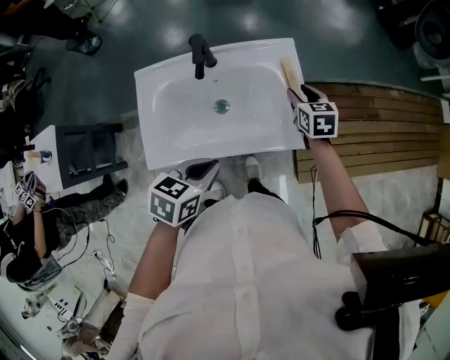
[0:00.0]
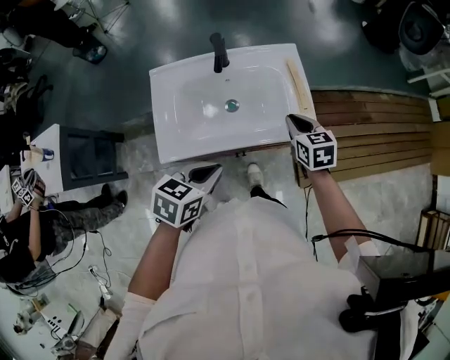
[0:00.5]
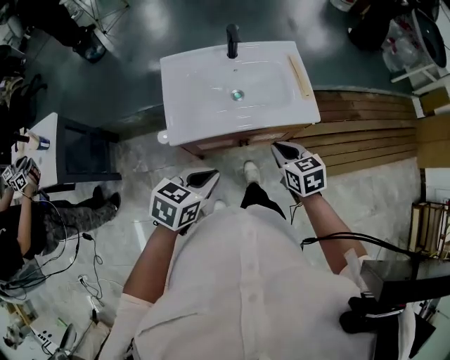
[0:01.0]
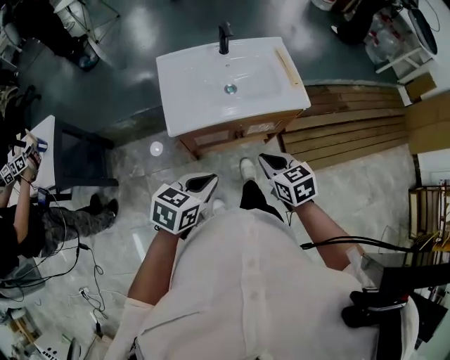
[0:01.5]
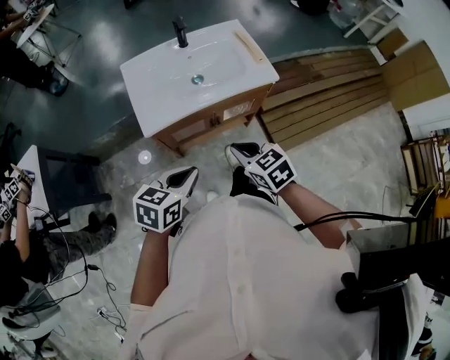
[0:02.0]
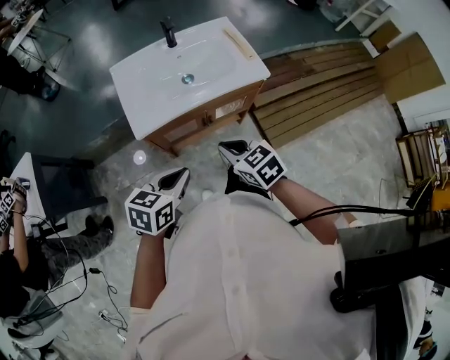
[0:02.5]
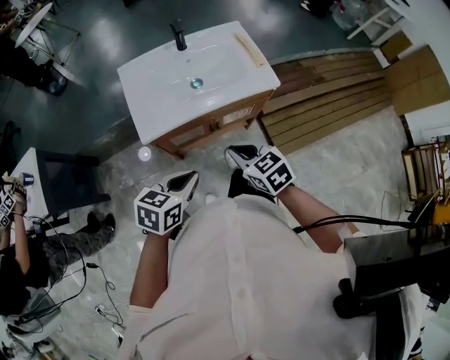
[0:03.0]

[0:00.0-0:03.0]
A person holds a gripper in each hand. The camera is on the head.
0:00.0 to 0:01.5: The right gripper goes approximately 40 cm backward, and closes up. Meanwhile the left gripper travels backward by some 25 cm.
0:01.5 to 0:03.0: The grippers make only small movements.

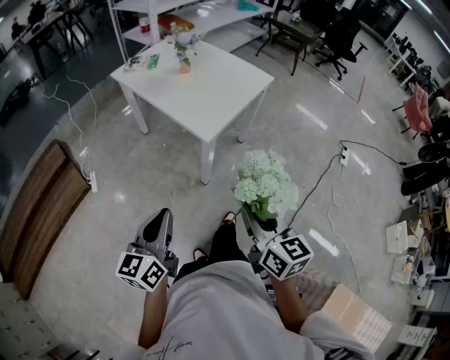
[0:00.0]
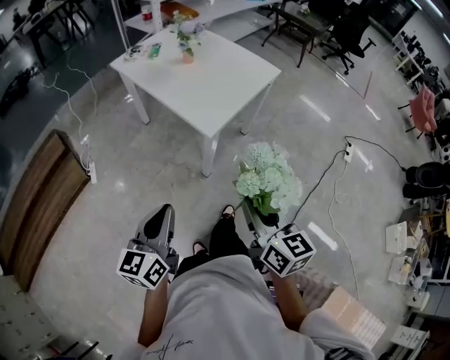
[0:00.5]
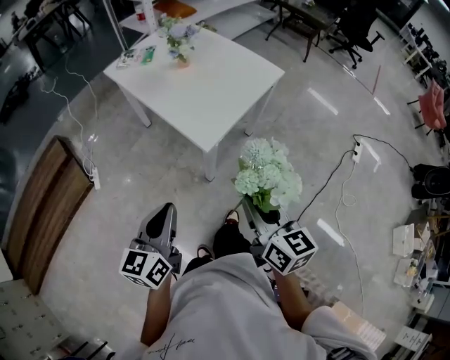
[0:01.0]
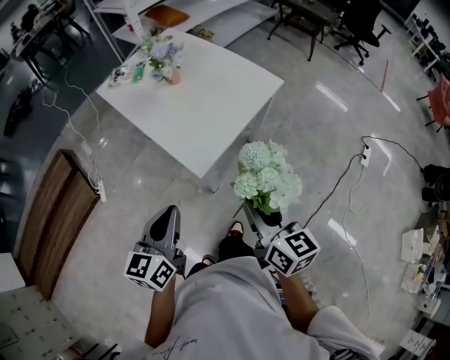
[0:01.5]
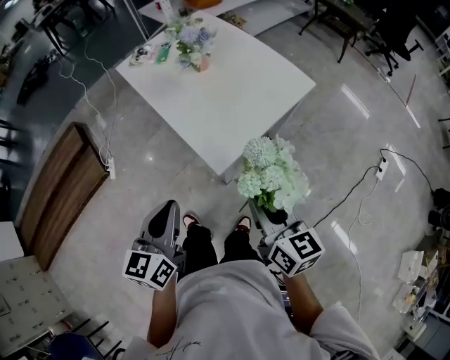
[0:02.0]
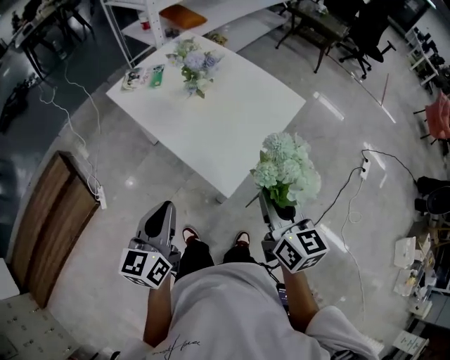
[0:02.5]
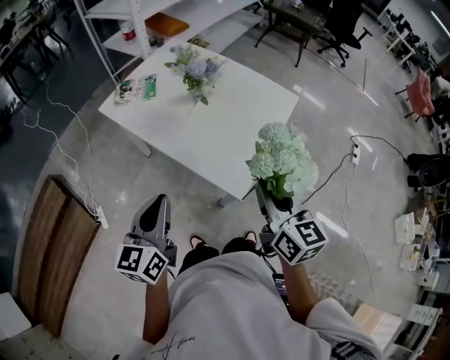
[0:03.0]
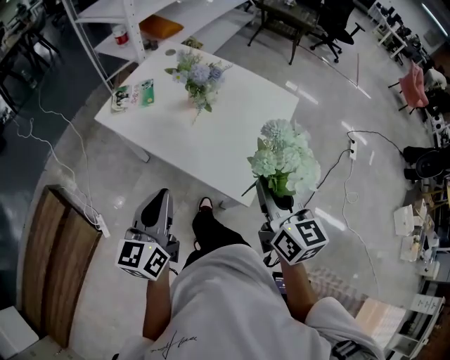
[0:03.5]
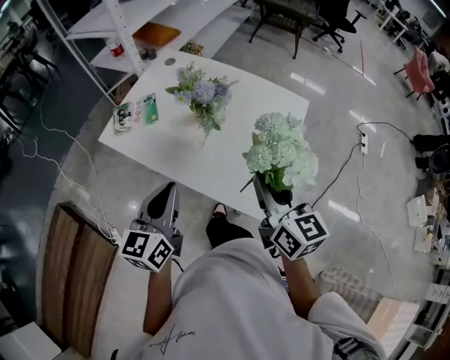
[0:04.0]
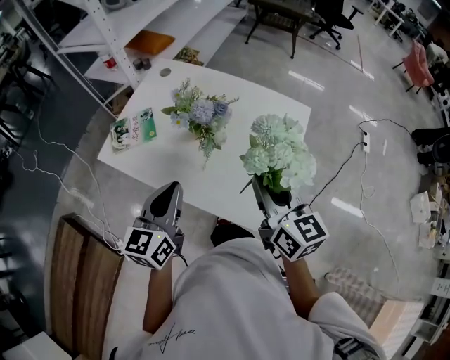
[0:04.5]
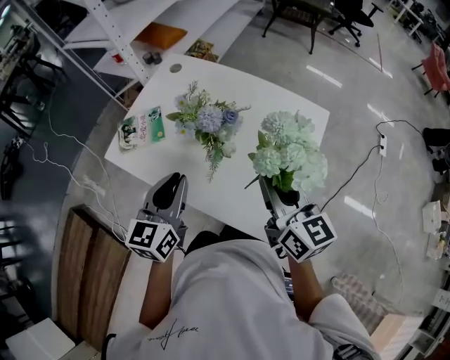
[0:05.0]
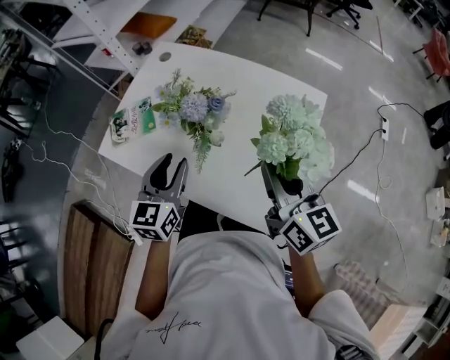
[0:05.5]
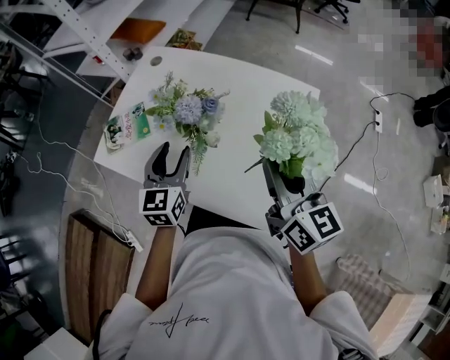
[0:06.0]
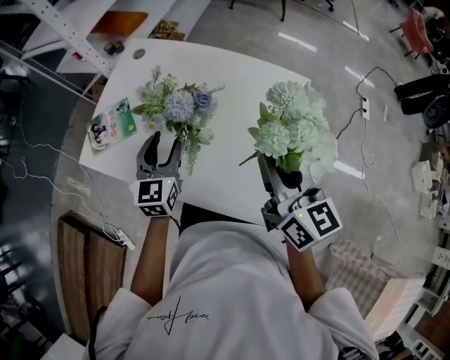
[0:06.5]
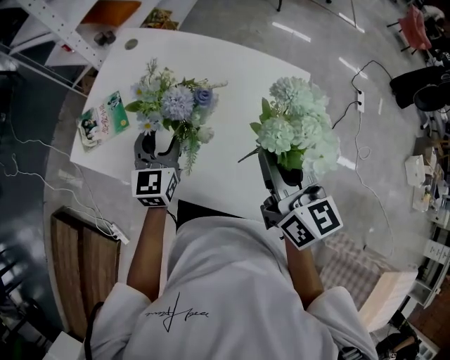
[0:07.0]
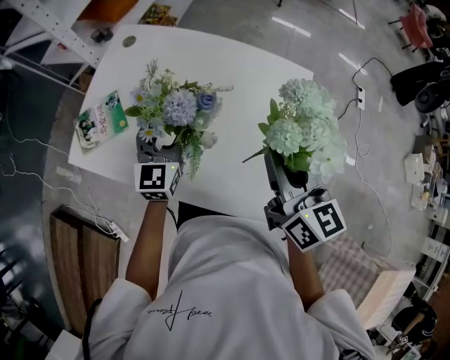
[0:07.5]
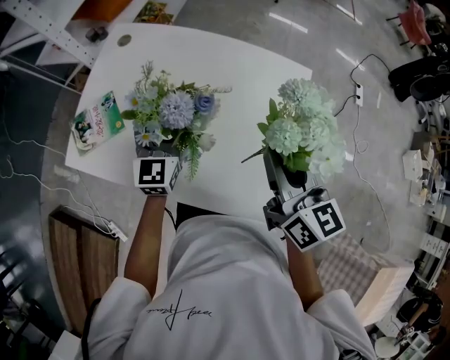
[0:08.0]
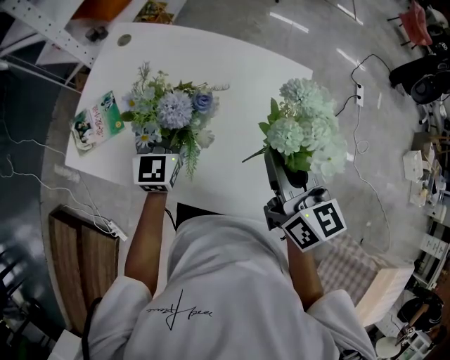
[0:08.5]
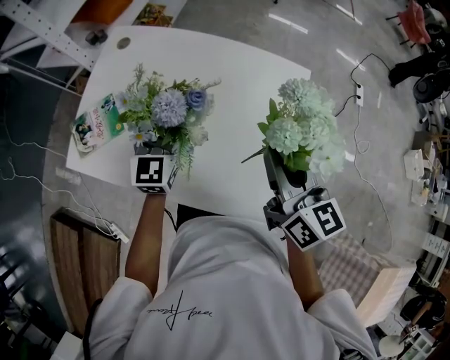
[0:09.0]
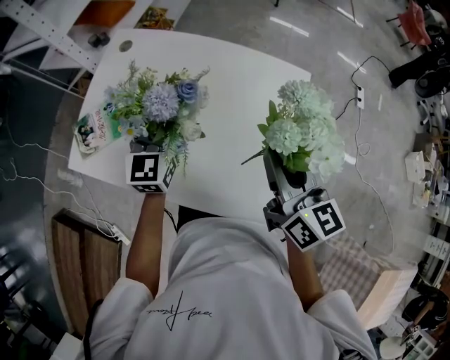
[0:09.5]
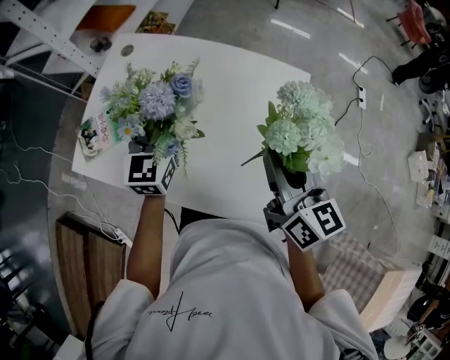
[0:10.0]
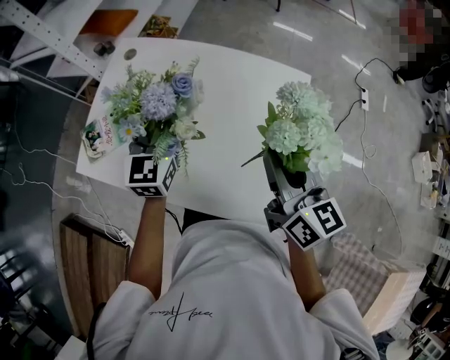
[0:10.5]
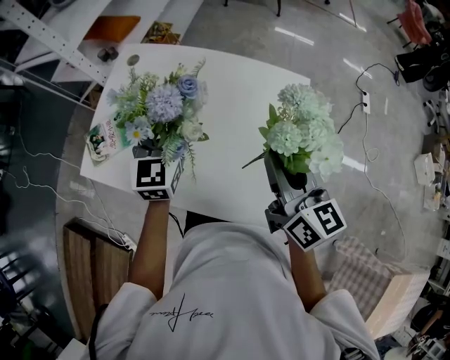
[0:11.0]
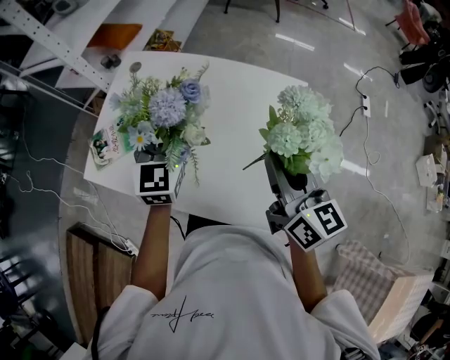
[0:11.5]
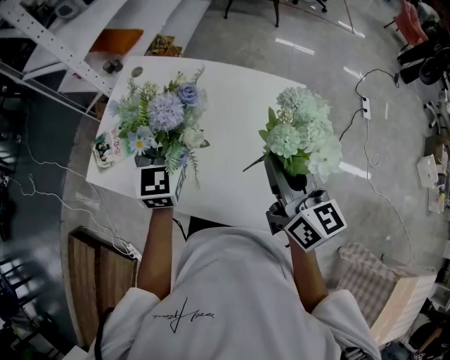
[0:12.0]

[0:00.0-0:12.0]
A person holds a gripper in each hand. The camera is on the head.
0:00.0 to 0:02.0: The two grippers go roughly 25 cm forward.
0:02.0 to 0:04.0: The right gripper changes place by some 25 cm, and rotates roughly 30 degrees. The left gripper ends up about 30 cm from where it was, and turns by about 20 degrees.
0:04.0 to 0:06.0: The left gripper heads forward, covering roughly 20 cm, and opens its fingers. The right gripper heads forward, covering roughly 10 cm.
0:06.0 to 0:08.0: The left gripper heads forward, covering approximately 5 cm.
0:08.0 to 0:10.0: The left gripper shifts about 5 cm upward, and closes its fingers.
0:10.0 to 0:12.0: The grippers make only small movements.

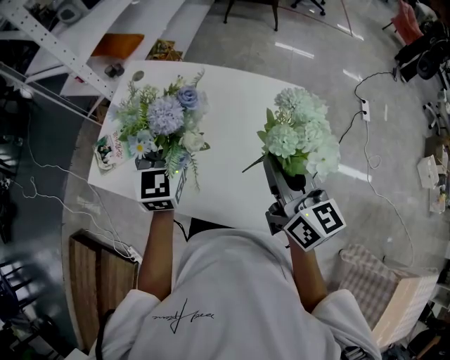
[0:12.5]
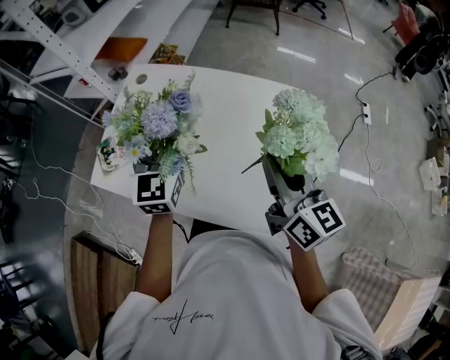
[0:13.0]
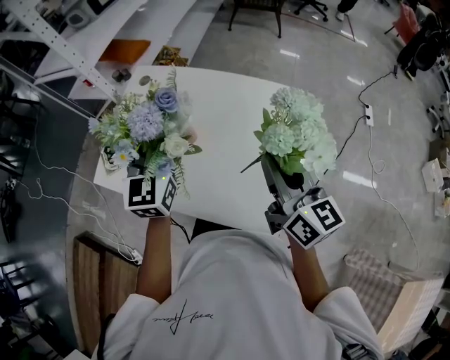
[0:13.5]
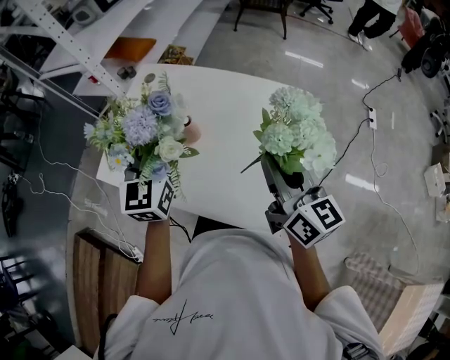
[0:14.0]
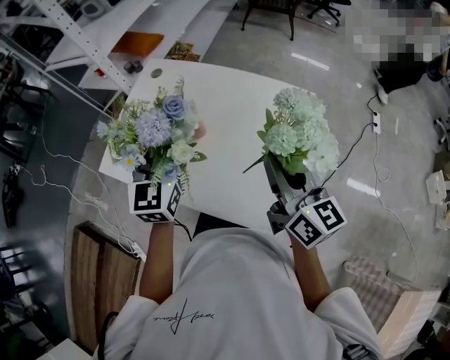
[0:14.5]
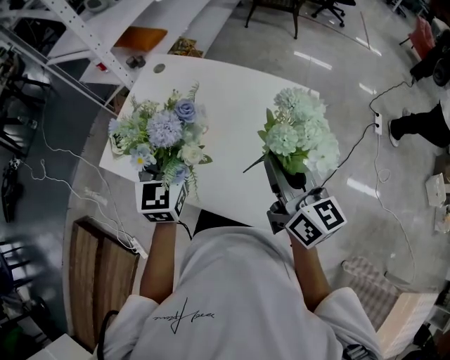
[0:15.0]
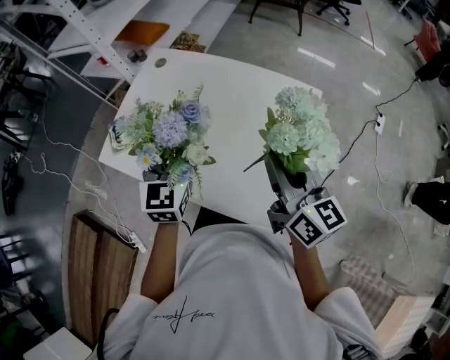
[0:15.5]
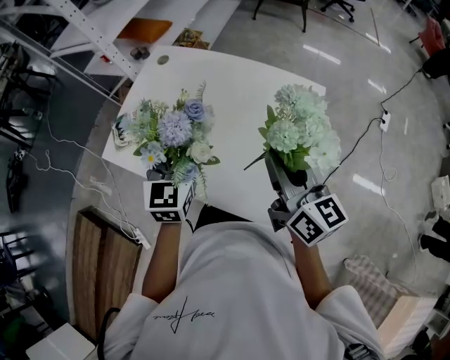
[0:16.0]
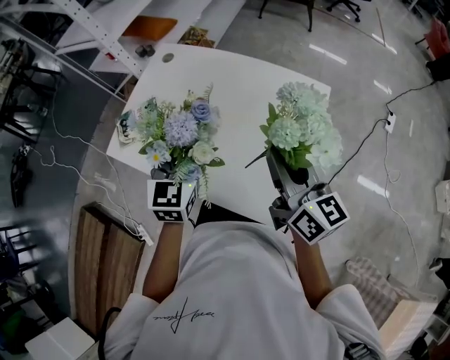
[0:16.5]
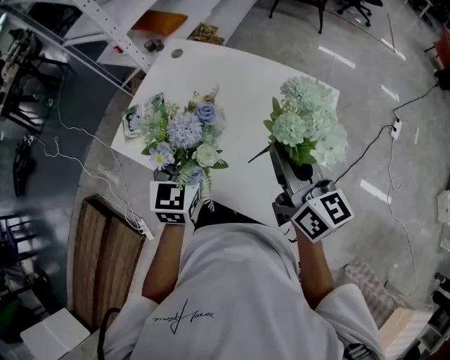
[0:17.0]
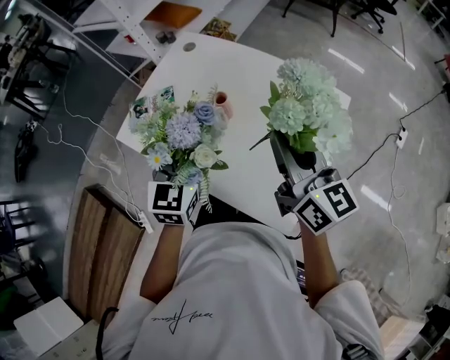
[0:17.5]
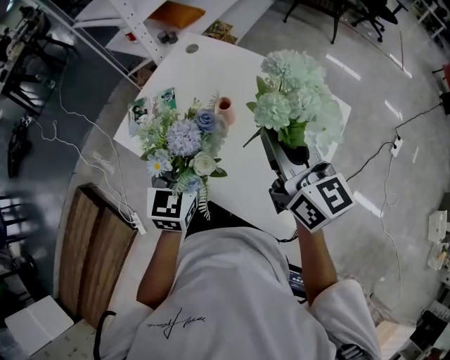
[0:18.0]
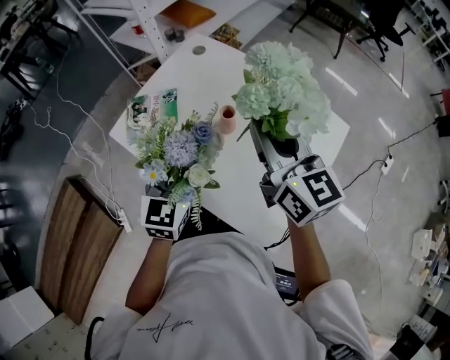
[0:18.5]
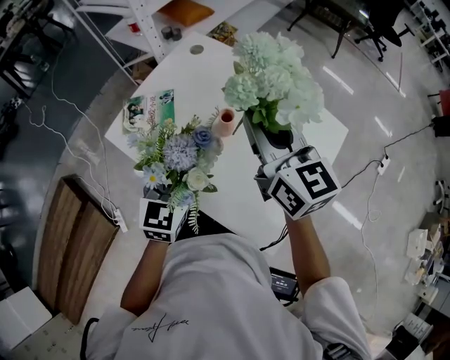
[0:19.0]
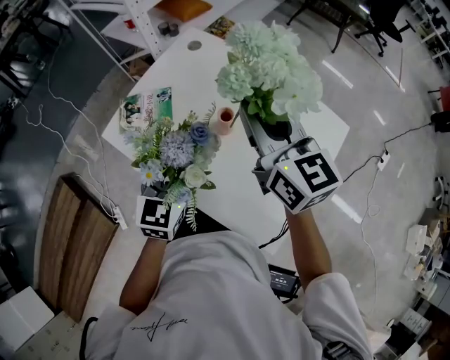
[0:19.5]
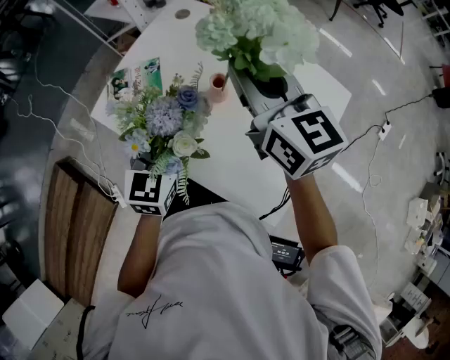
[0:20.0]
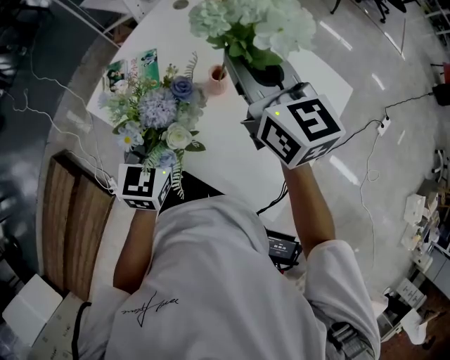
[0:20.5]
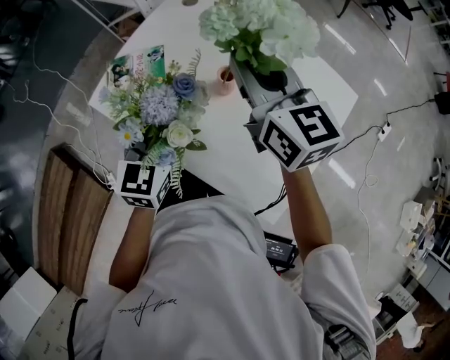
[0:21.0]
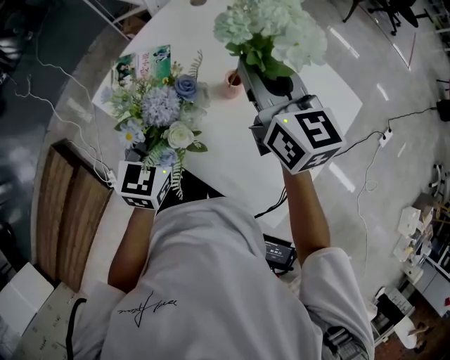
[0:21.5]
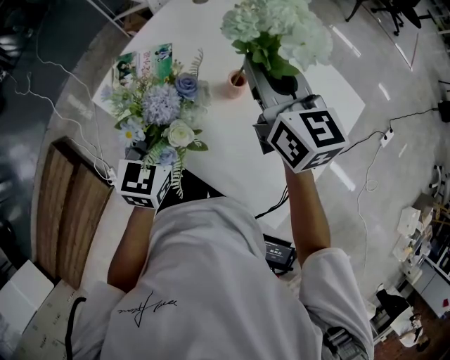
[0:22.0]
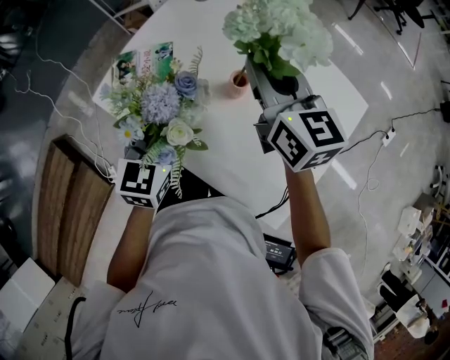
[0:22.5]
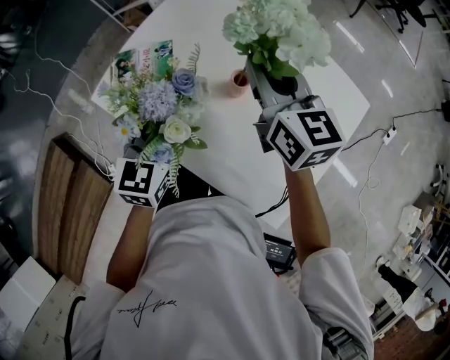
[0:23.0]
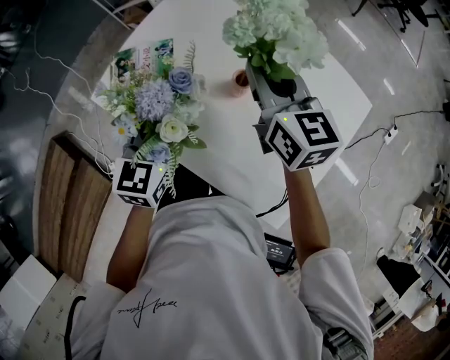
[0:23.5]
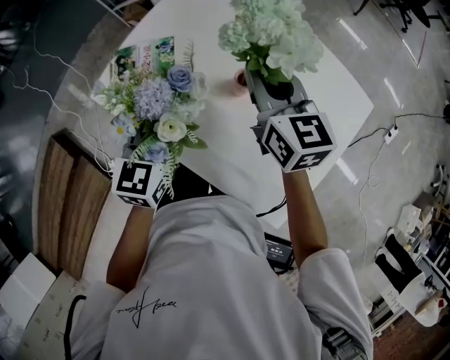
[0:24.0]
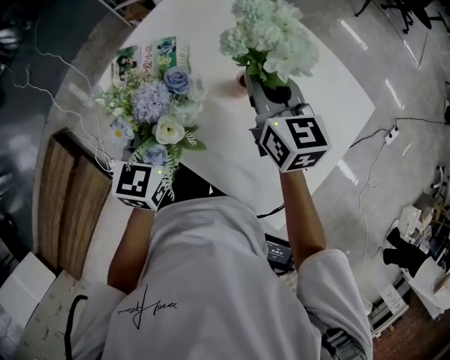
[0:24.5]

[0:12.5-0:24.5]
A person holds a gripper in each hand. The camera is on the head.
0:12.5 to 0:14.5: The left gripper shifts by approximately 5 cm.
0:14.5 to 0:16.5: The left gripper moves approximately 5 cm.
0:16.5 to 0:18.5: The left gripper shifts some 10 cm to the left. The right gripper is displaced forward and to the left by roughly 15 cm, and turns by approximately 20 degrees.
0:18.5 to 0:20.5: The right gripper is displaced forward by approximately 5 cm.
0:20.5 to 0:22.5: The left gripper moves roughly 5 cm. The right gripper goes about 5 cm downward.
0:22.5 to 0:24.5: The right gripper shifts approximately 10 cm downward.
